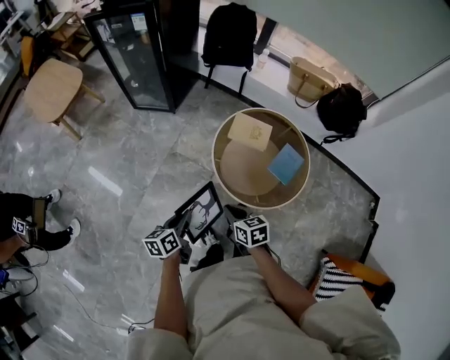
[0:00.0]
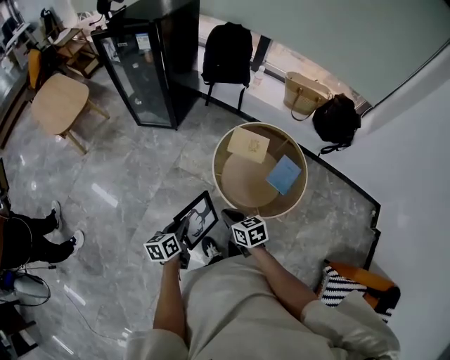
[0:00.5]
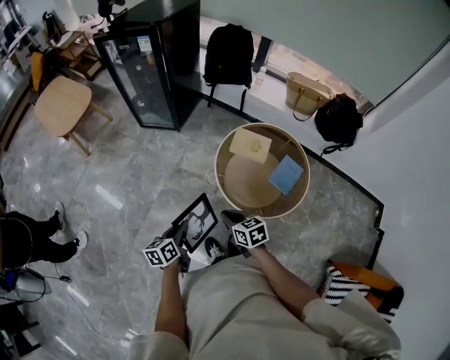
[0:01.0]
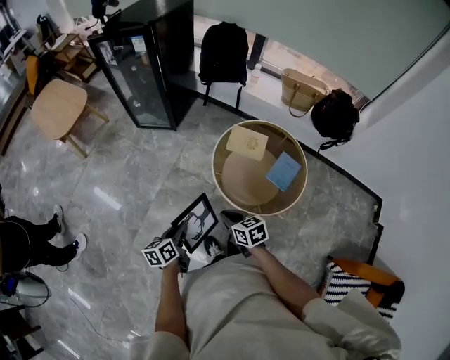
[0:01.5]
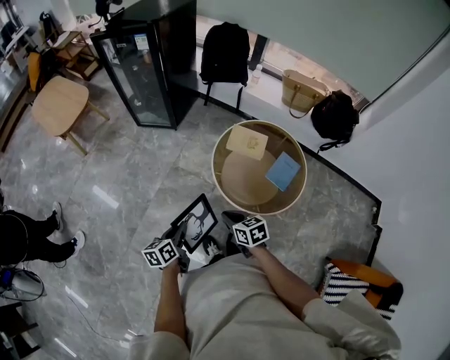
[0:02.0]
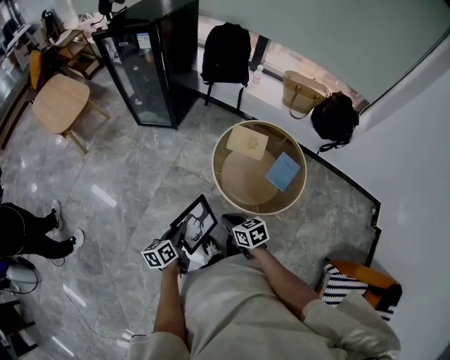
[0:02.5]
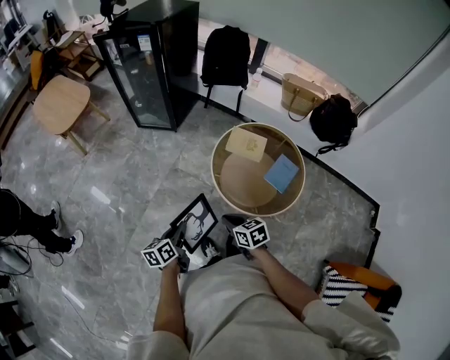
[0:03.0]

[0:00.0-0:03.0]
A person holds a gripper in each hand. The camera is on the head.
0:00.0 to 0:01.5: The grippers stay close to where they were, moving slightly.
0:01.5 to 0:03.0: The grippers make only small movements.

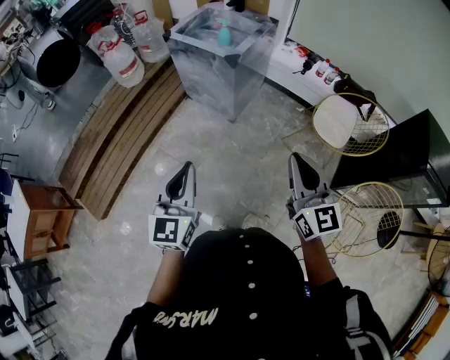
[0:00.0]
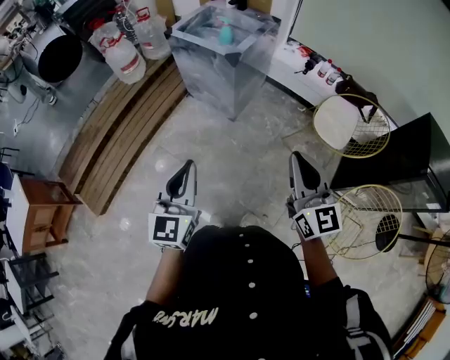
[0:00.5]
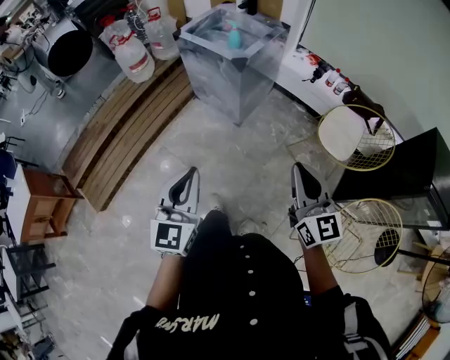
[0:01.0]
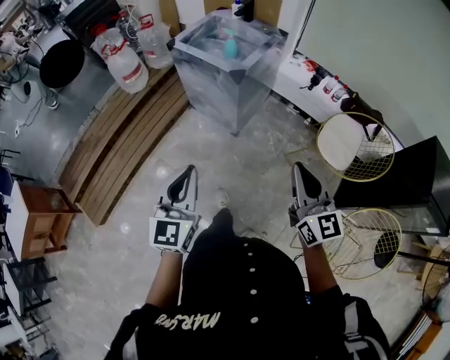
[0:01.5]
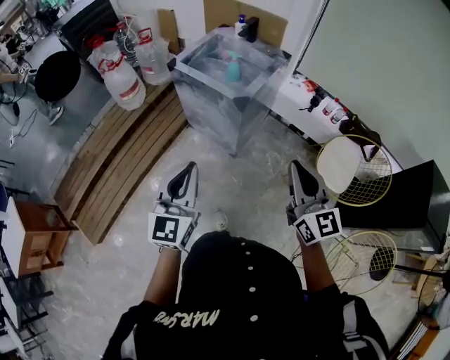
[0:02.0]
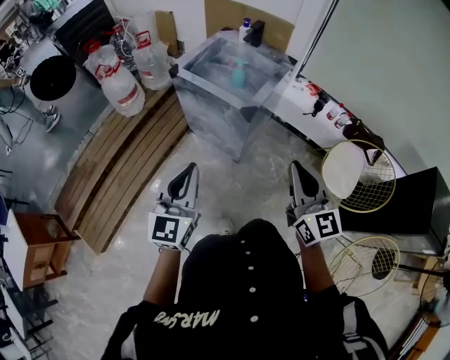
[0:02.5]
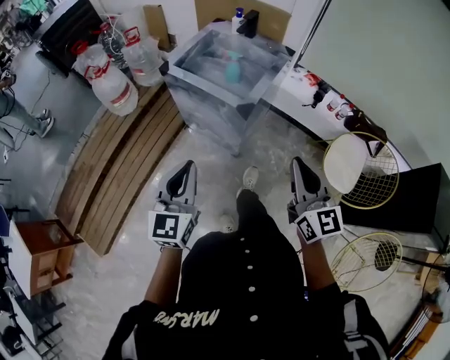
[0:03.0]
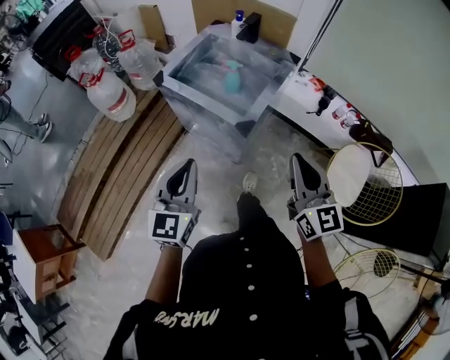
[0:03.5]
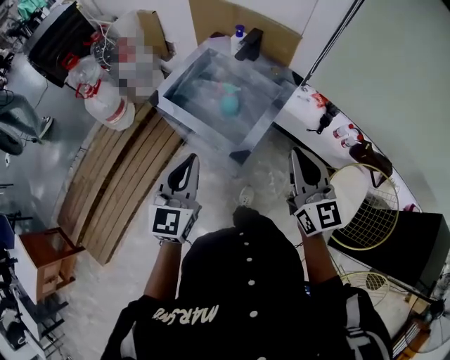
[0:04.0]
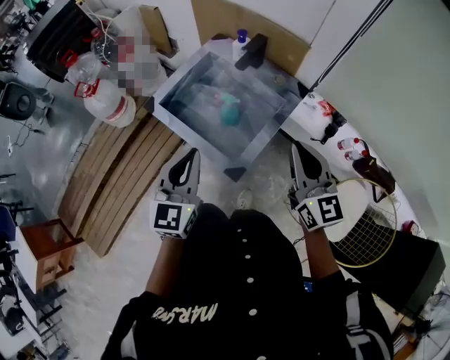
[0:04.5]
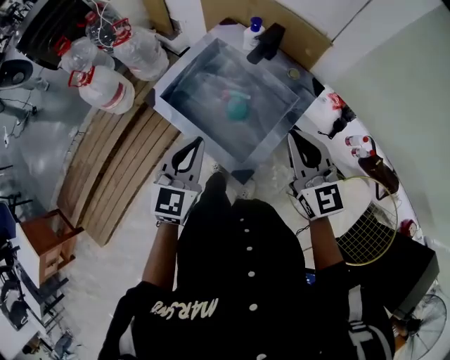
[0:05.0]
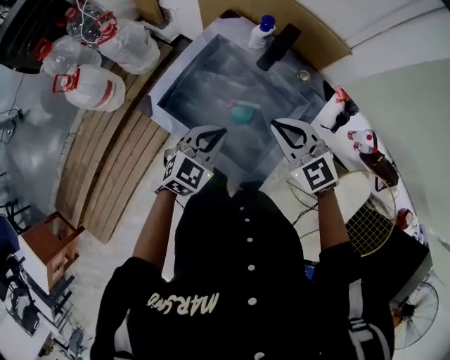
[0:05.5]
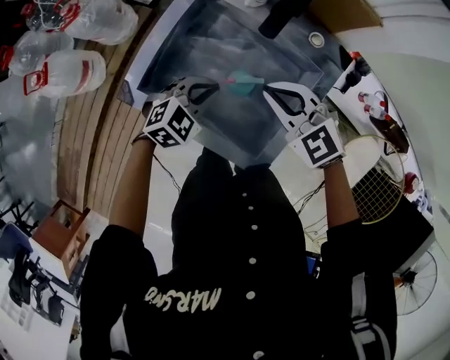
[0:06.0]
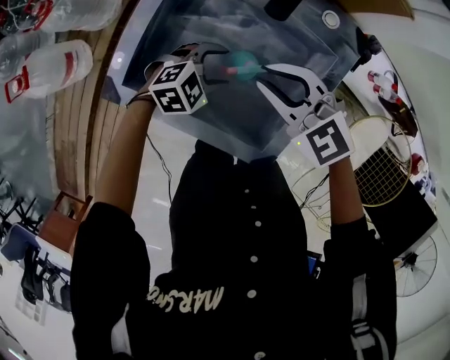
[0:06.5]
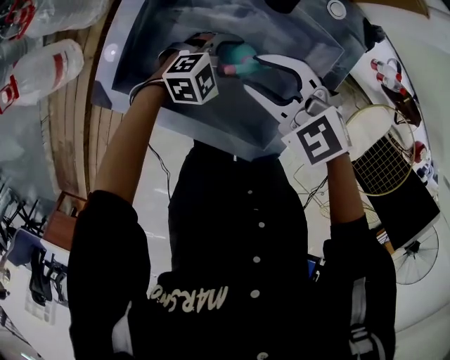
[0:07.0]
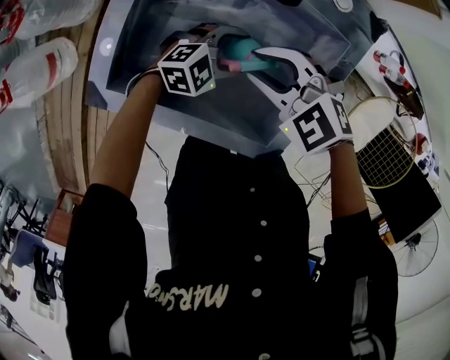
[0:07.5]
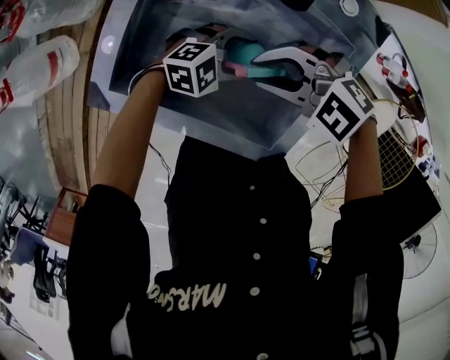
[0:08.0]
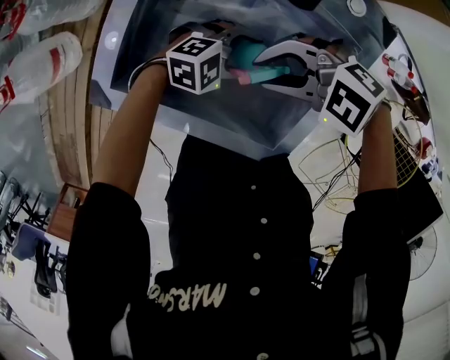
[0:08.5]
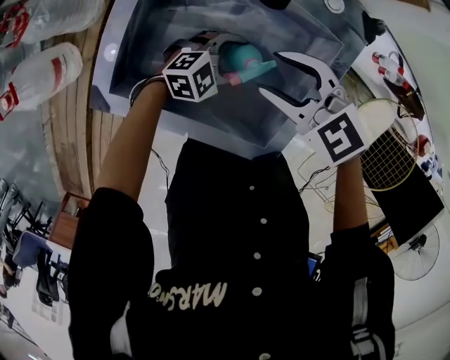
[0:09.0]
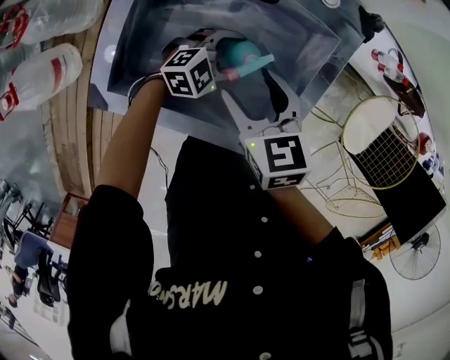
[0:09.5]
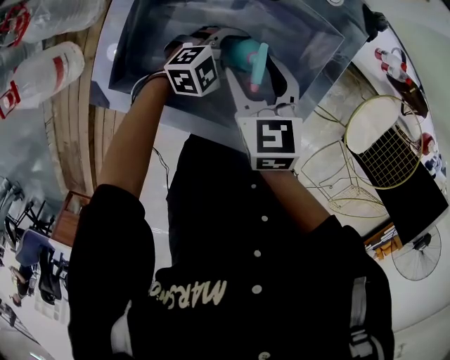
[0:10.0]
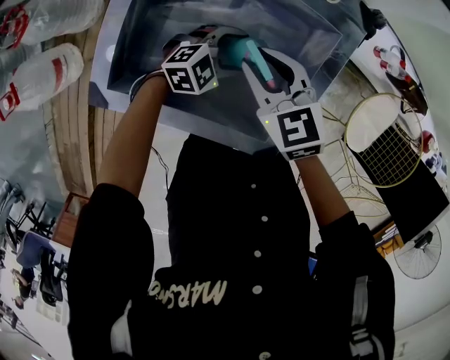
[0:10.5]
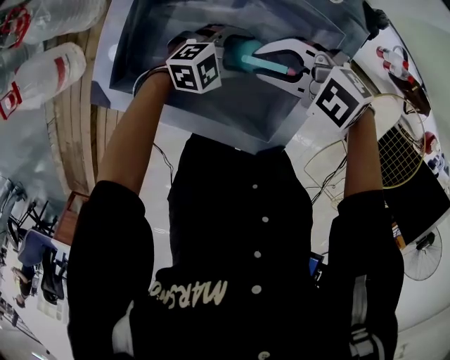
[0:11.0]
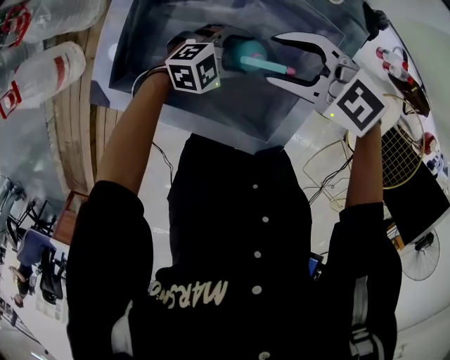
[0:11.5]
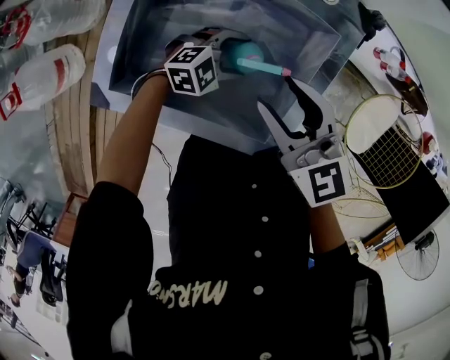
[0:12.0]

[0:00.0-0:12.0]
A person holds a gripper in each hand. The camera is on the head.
0:00.0 to 0:02.0: The grippers both shift forward by some 20 cm.
0:02.0 to 0:04.0: The two grippers go approximately 35 cm forward.
0:04.0 to 0:06.0: The left gripper goes approximately 40 cm forward and downward, and tips its fingers downward by roughly 40 degrees. Meanwhile the right gripper travels forward, downward and to the left by about 40 cm, and points its fingers approximately 30 degrees further downward.
0:06.0 to 0:08.0: Both grippers travel together downward, approximately 10 cm. The right gripper rotates some 30 degrees. The left gripper swivels about 40 degrees, and opens.
0:08.0 to 0:10.0: The right gripper changes its angle by about 80 degrees, and opens up.
0:10.0 to 0:12.0: The right gripper heads upward, covering approximately 10 cm, and swivels roughly 20 degrees.

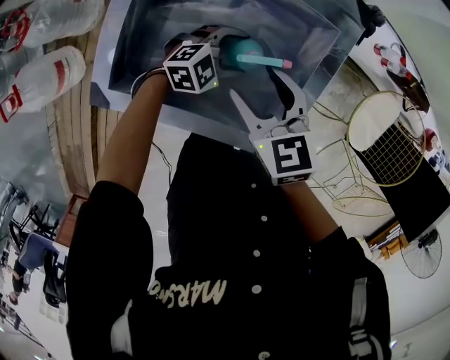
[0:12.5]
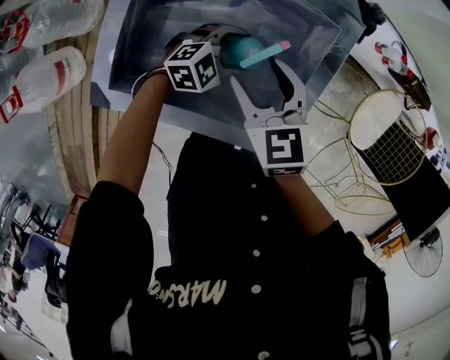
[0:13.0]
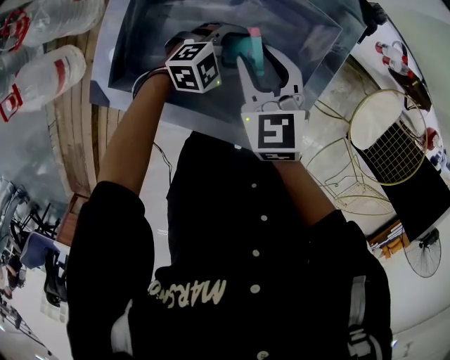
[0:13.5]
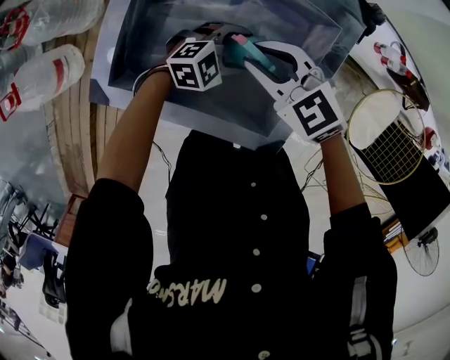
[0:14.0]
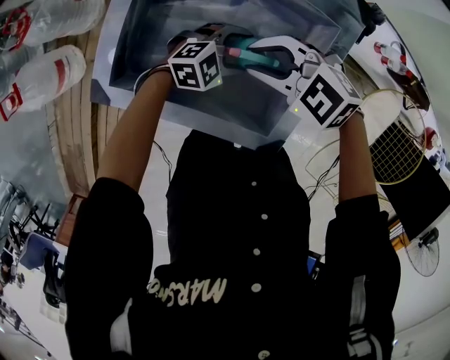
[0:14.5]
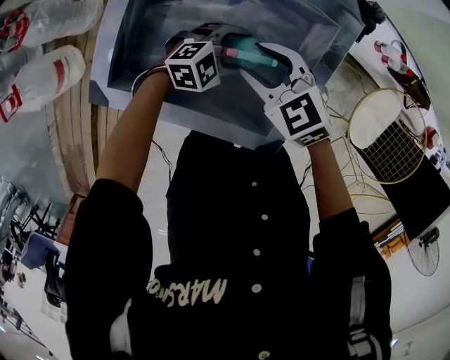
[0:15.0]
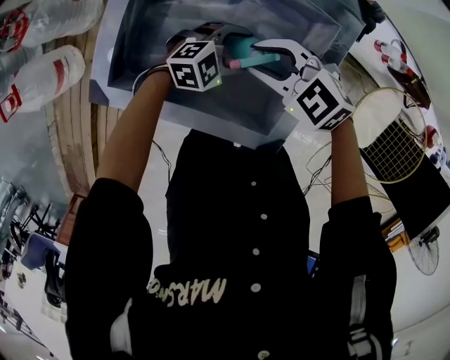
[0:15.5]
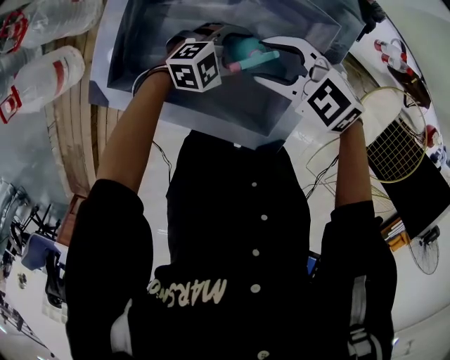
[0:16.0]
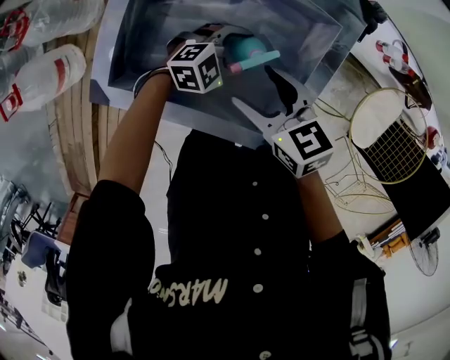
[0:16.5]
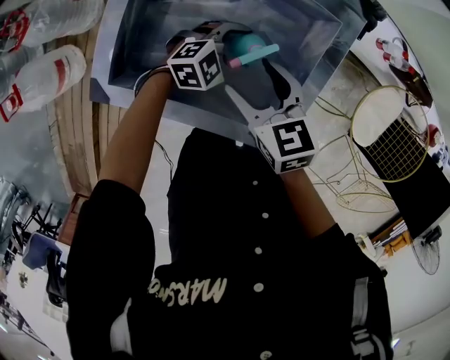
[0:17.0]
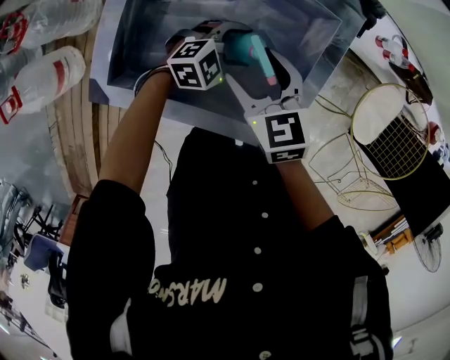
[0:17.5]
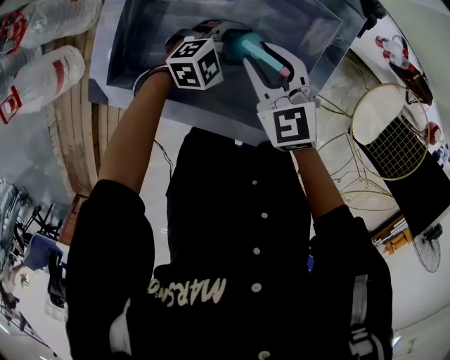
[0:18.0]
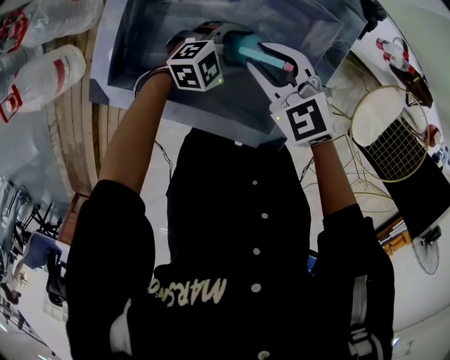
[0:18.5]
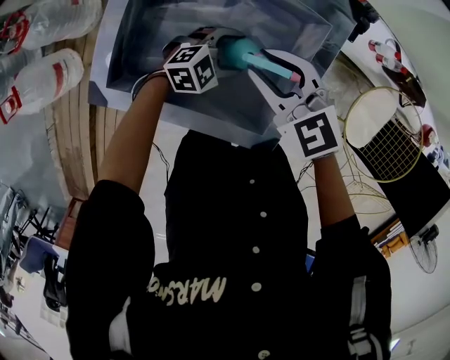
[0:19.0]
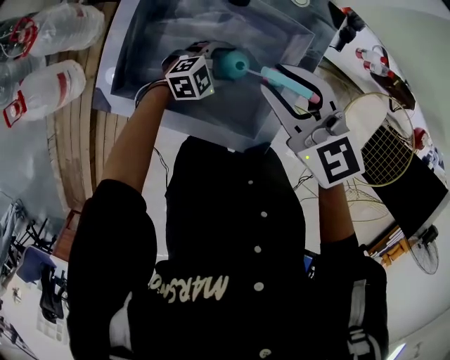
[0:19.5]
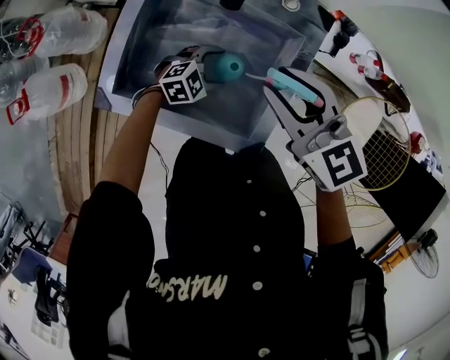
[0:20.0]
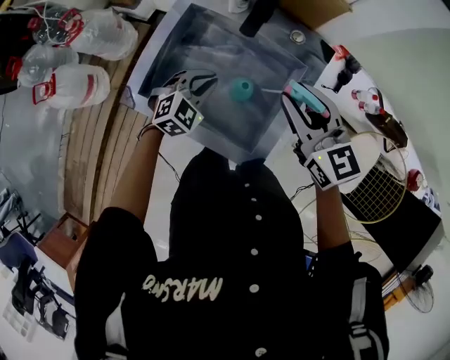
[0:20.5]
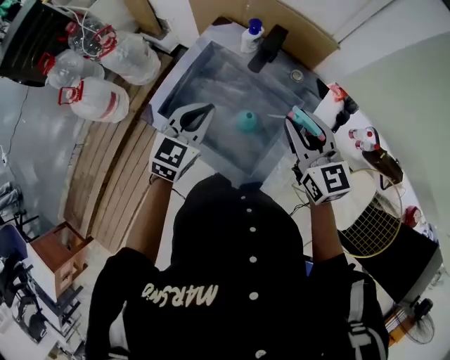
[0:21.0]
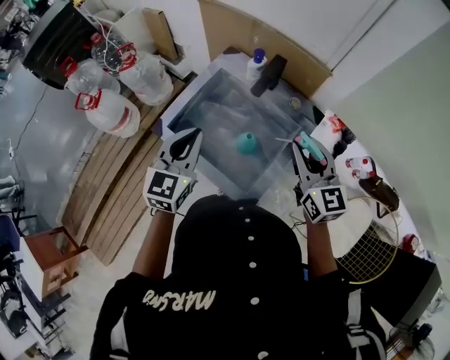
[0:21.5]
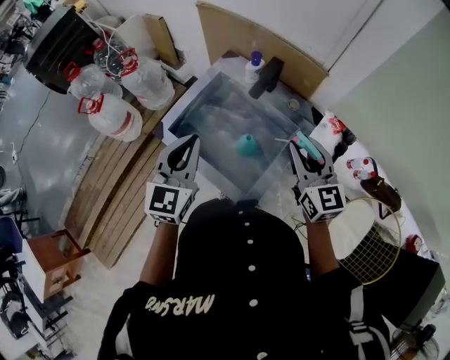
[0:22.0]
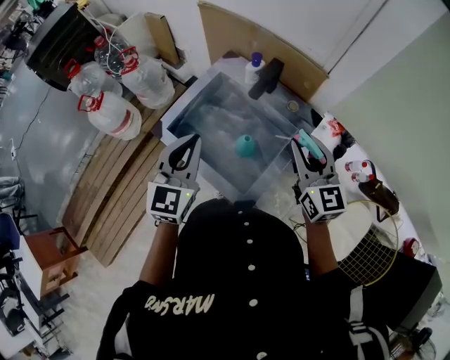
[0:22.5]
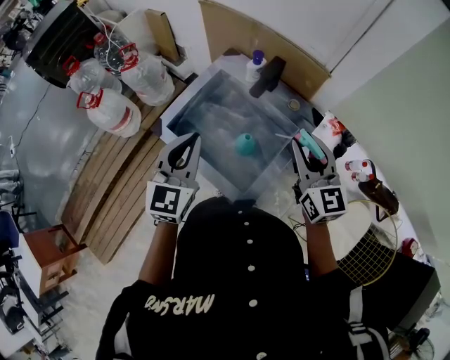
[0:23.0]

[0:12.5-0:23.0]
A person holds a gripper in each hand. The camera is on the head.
0:12.5 to 0:14.5: The right gripper changes its angle by some 60 degrees, and closes.
0:14.5 to 0:16.5: The right gripper rotates around the line of its fingers by approximately 50 degrees, clockwise from behind, and opens.
0:16.5 to 0:19.0: The right gripper changes place by about 5 cm, turns by roughly 30 degrees, and closes its fingers.
0:19.0 to 0:21.0: The right gripper travels upward by some 20 cm, and rotates roughly 30 degrees, while the left gripper moves upward, some 30 cm, changes its angle by approximately 60 degrees, and closes.
0:21.0 to 0:23.0: The right gripper ends up about 5 cm from where it was. The left gripper moves upward and backward, roughly 15 cm, and rotates roughly 20 degrees.

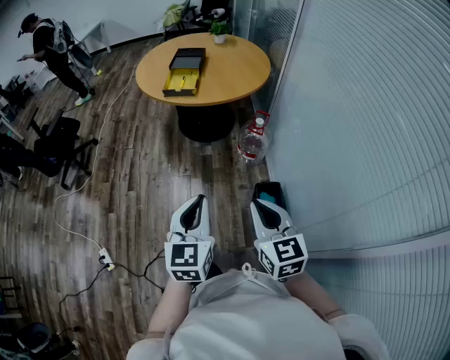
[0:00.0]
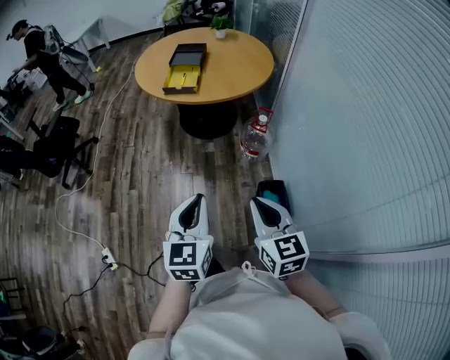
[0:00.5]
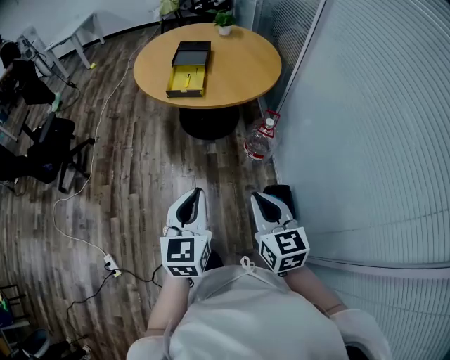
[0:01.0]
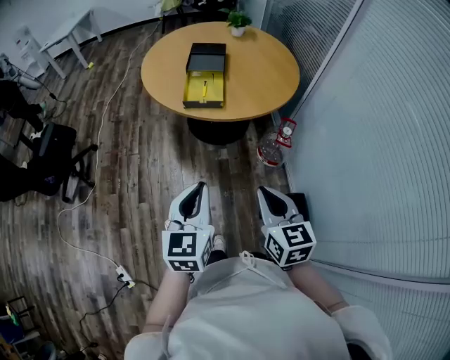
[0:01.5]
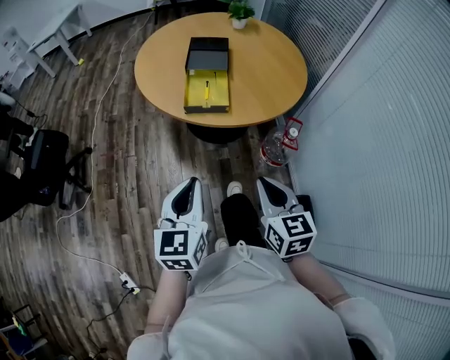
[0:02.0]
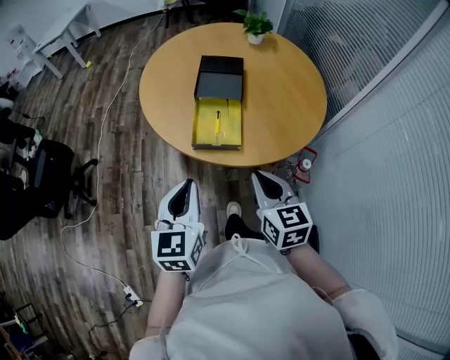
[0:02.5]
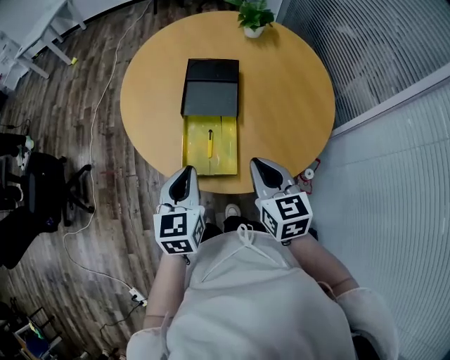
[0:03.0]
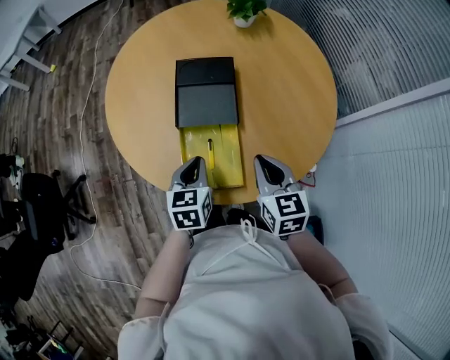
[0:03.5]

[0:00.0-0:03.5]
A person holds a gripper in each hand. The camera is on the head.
0:00.0 to 0:02.0: The pair of grippers is taken forward and to the left, some 50 cm.
0:02.0 to 0:03.5: The pair of grippers is taken forward, approximately 50 cm. The left gripper rotates about 20 degrees.
